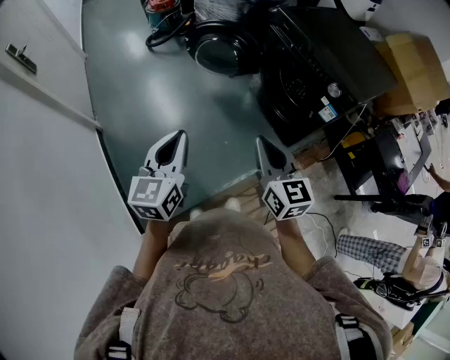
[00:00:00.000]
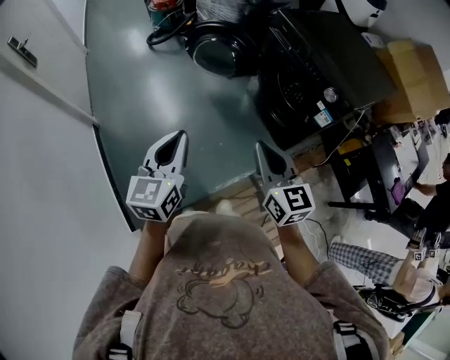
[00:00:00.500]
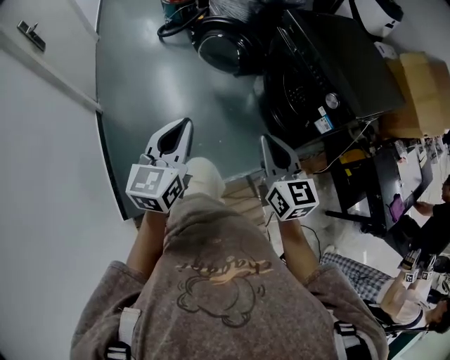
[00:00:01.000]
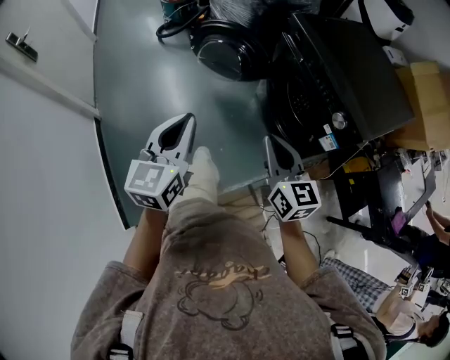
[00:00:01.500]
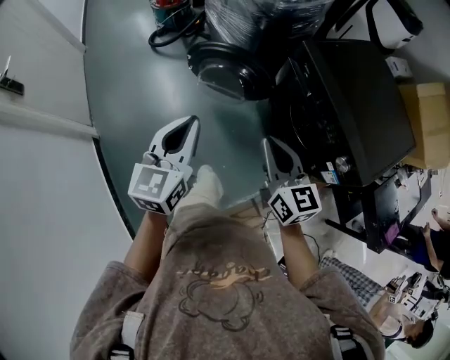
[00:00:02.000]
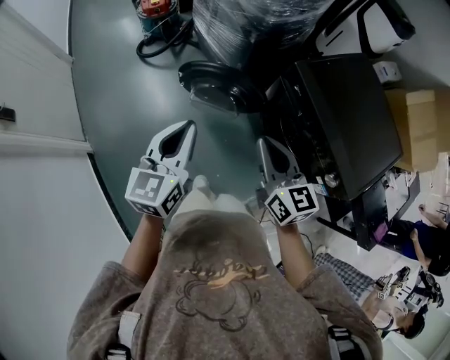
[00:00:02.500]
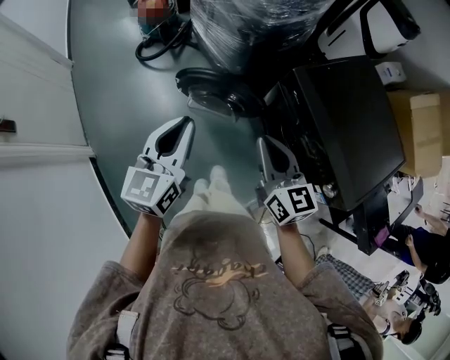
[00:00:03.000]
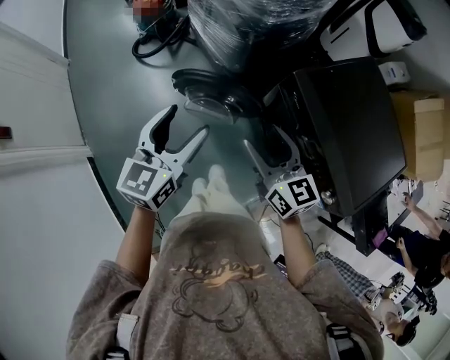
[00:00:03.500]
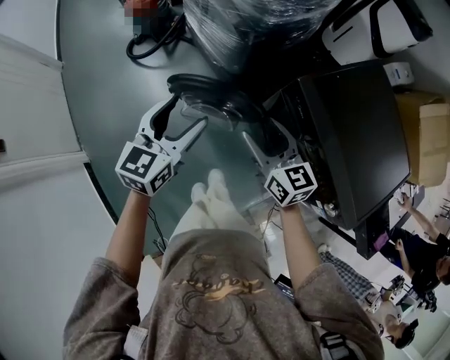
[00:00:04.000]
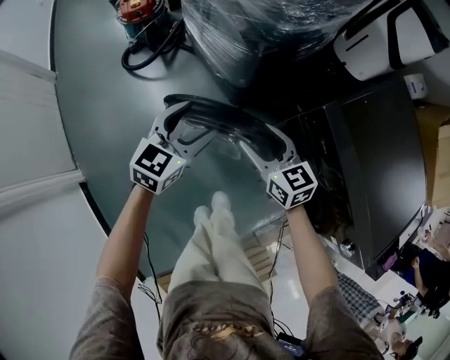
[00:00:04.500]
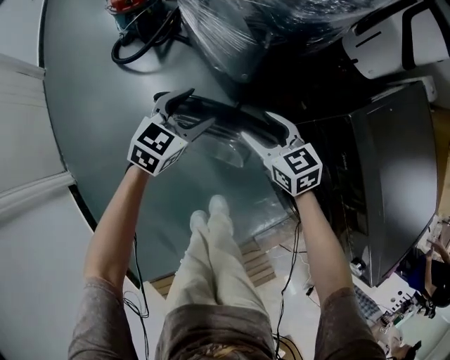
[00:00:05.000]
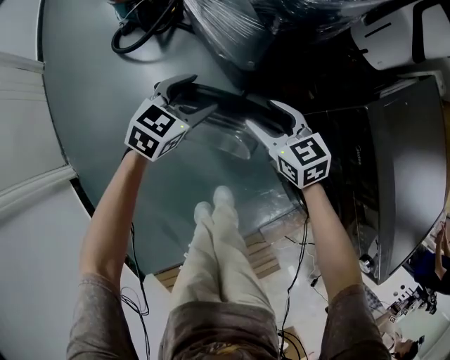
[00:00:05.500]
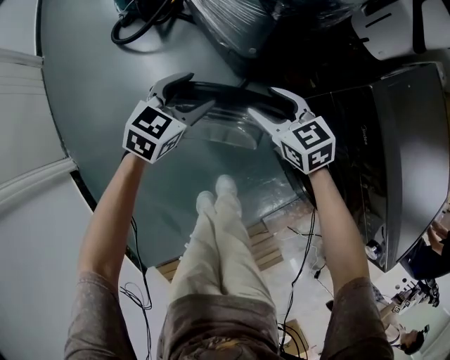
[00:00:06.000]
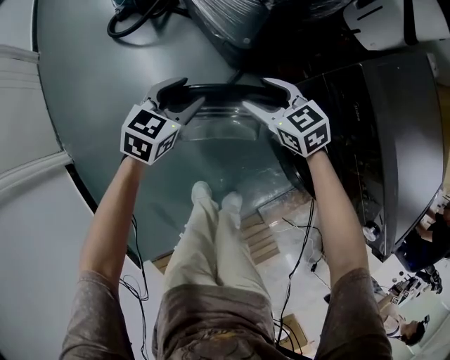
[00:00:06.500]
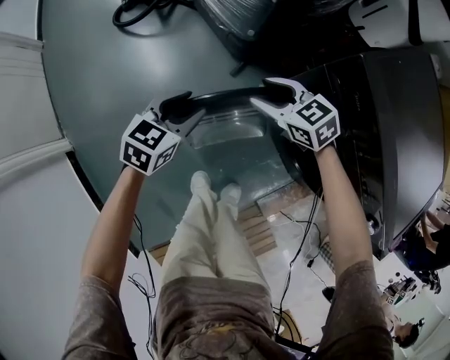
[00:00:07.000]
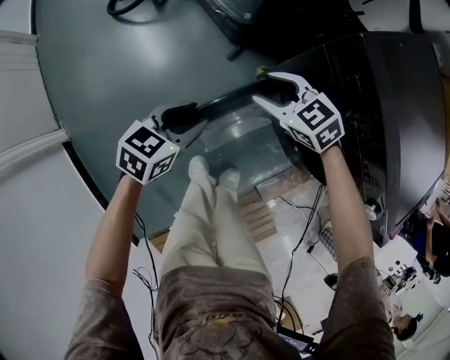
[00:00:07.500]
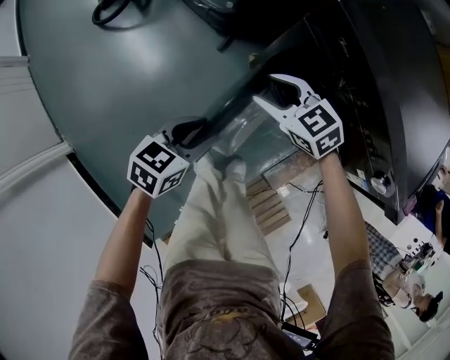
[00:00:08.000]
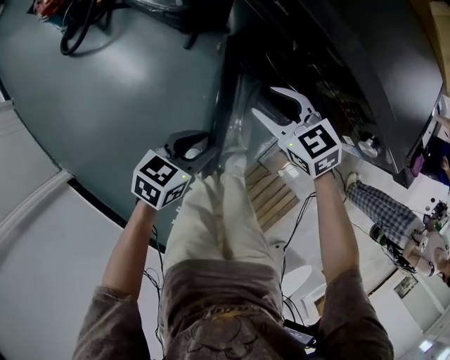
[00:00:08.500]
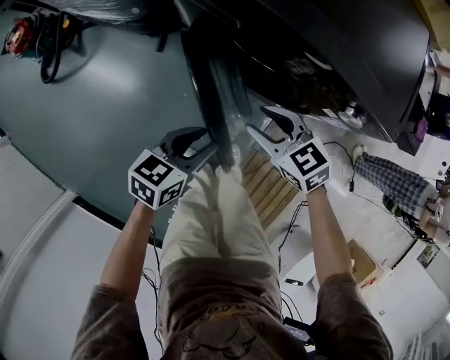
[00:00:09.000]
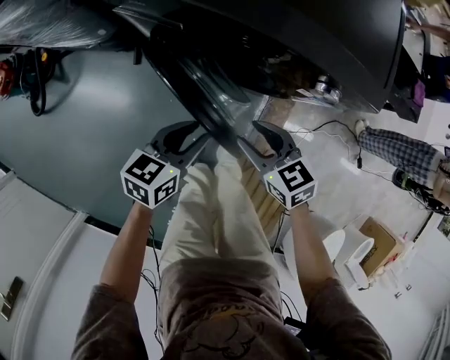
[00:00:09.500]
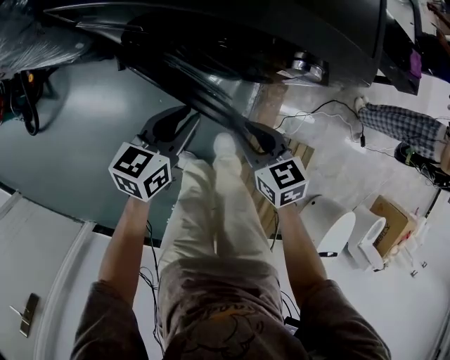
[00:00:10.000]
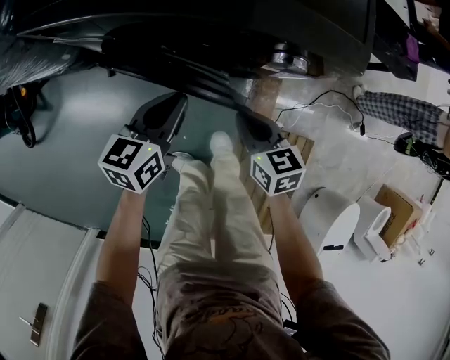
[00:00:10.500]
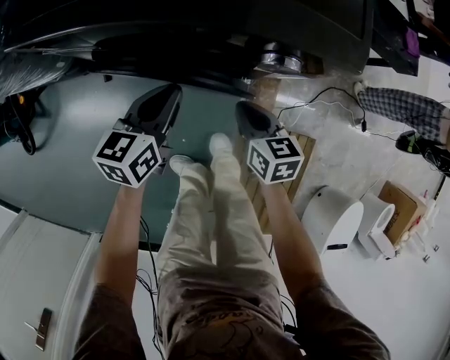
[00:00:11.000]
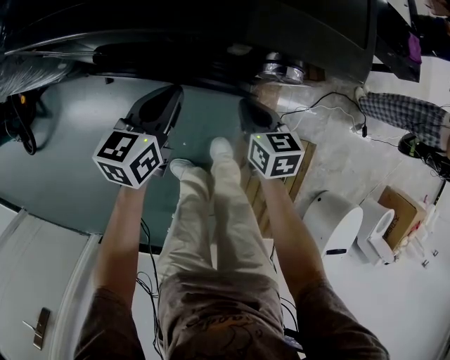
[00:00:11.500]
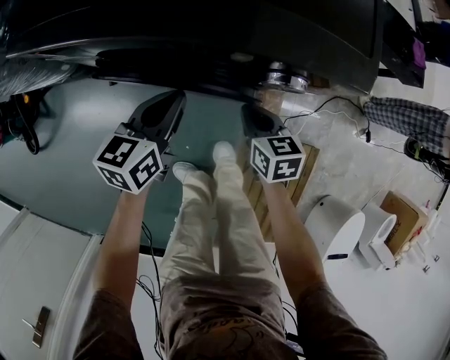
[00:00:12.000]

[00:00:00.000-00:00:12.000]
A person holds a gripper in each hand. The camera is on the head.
00:00:00.000 to 00:00:02.000: The two grippers go some 25 cm forward.
00:00:02.000 to 00:00:04.000: The grippers both shift forward by roughly 25 cm. The right gripper opens up. The left gripper opens up.
00:00:04.000 to 00:00:06.000: The grippers both shift downward and forward by roughly 30 cm. The left gripper changes its angle by roughly 20 degrees. Meanwhile the right gripper turns by about 30 degrees.
00:00:06.000 to 00:00:08.000: The right gripper shifts some 15 cm backward. Meanwhile the left gripper travels backward by some 25 cm, rotates approximately 20 degrees, and closes up.
00:00:08.000 to 00:00:10.000: The left gripper changes place by some 25 cm, and turns by about 20 degrees; the right gripper ends up some 35 cm from where it was, turns by roughly 60 degrees, and closes its fingers.
00:00:10.000 to 00:00:12.000: The left gripper is displaced forward by some 10 cm; the right gripper goes approximately 10 cm forward, downward and to the right, and closes up.

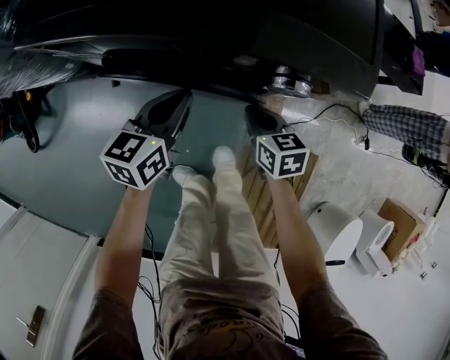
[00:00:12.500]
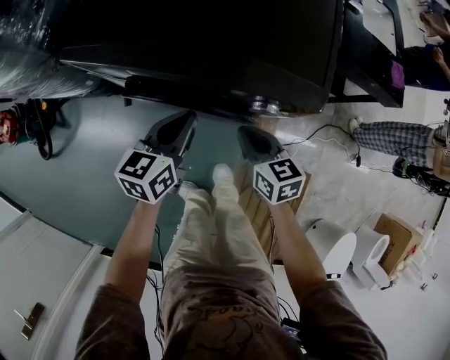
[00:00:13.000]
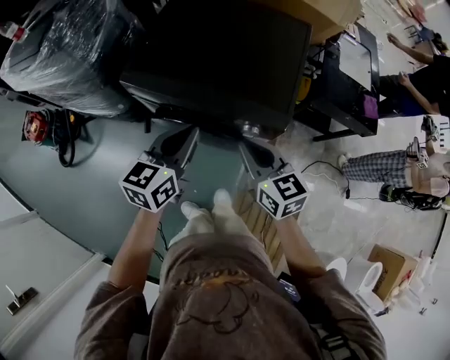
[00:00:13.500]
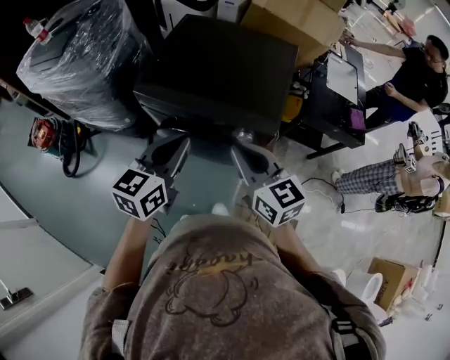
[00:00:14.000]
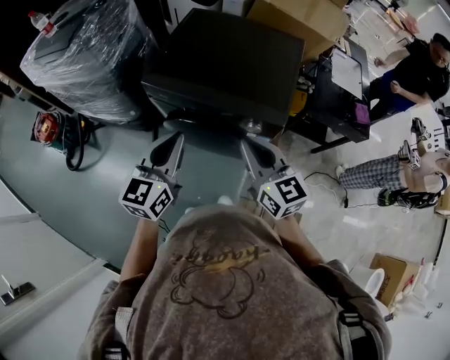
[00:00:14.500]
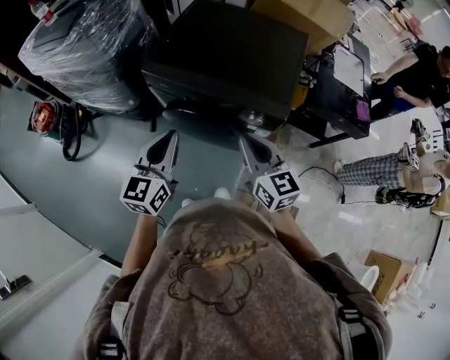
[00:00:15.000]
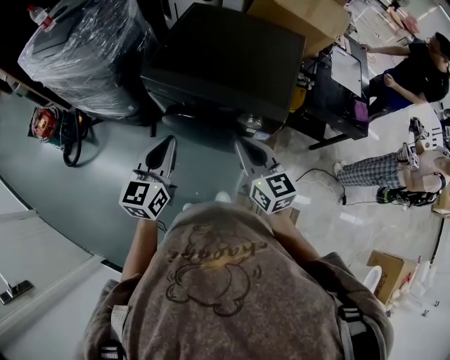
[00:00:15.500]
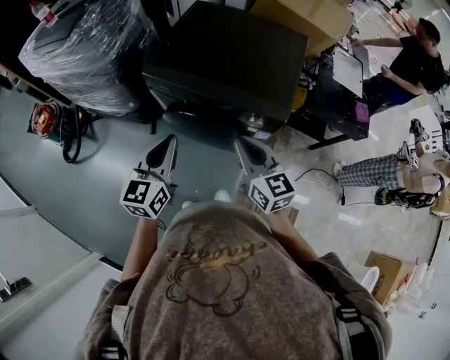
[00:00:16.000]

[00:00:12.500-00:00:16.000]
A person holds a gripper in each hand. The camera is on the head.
00:00:12.500 to 00:00:14.500: Both grippers travel together upward, about 40 cm. The right gripper angles its fingers upward, by some 40 degrees; the left gripper swivels approximately 30 degrees.
00:00:14.500 to 00:00:16.000: The left gripper ends up roughly 5 cm from where it was.

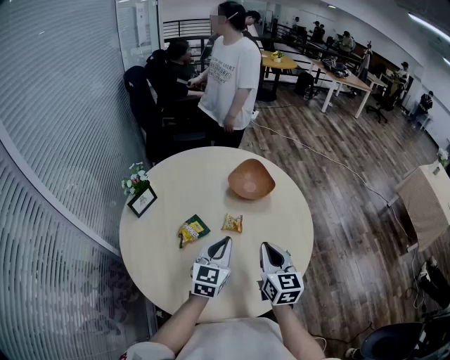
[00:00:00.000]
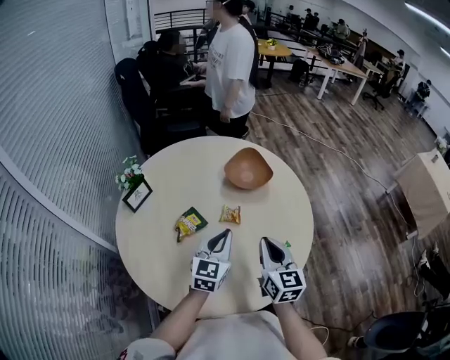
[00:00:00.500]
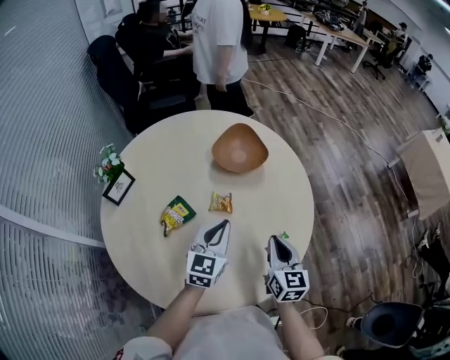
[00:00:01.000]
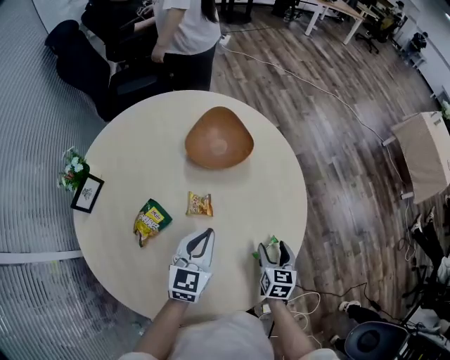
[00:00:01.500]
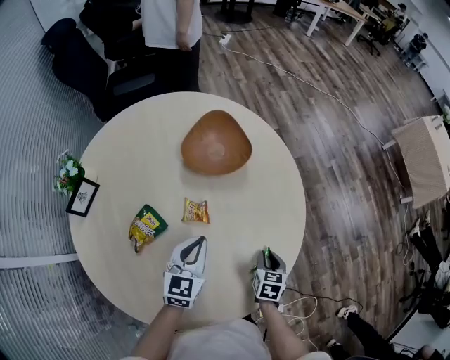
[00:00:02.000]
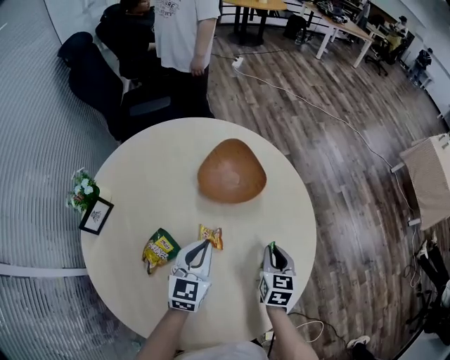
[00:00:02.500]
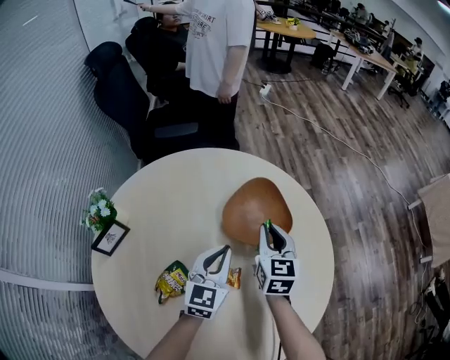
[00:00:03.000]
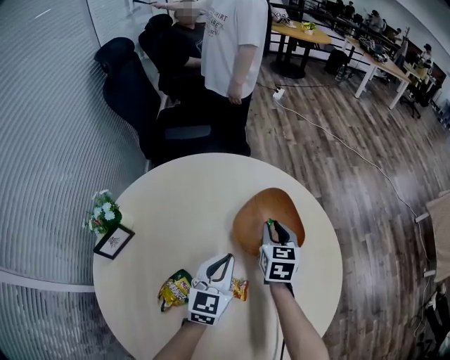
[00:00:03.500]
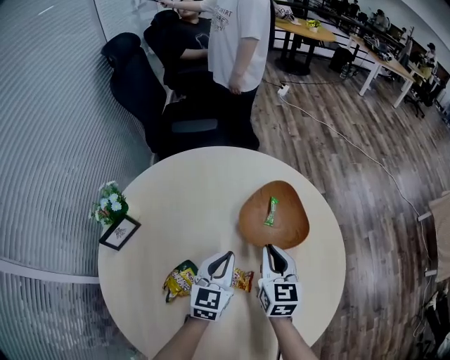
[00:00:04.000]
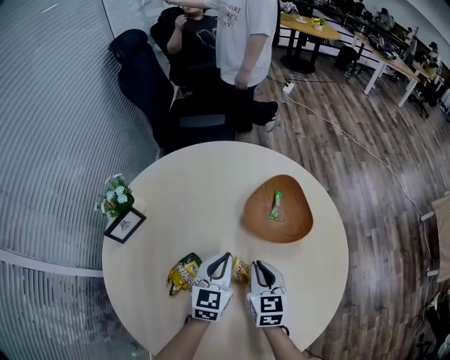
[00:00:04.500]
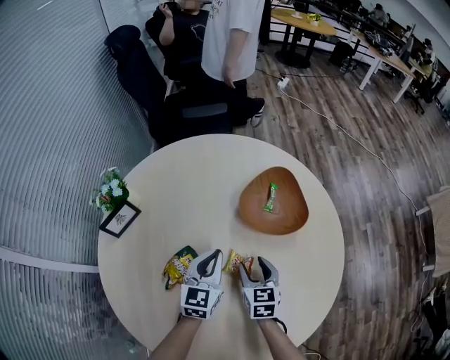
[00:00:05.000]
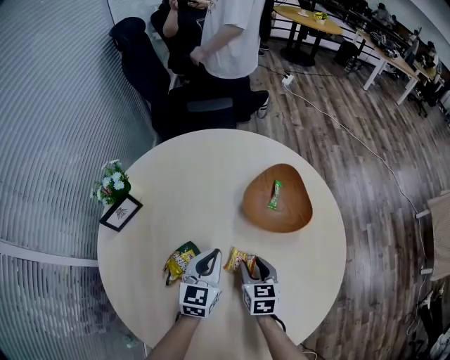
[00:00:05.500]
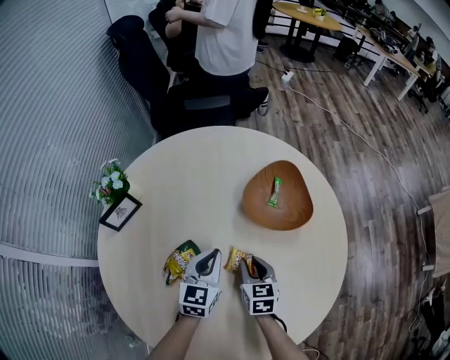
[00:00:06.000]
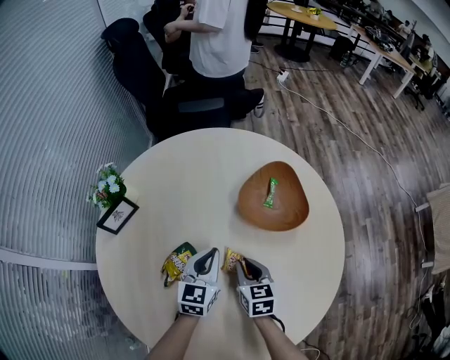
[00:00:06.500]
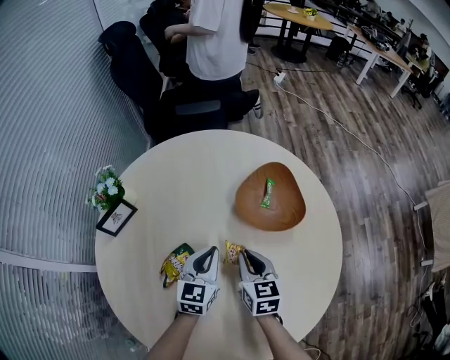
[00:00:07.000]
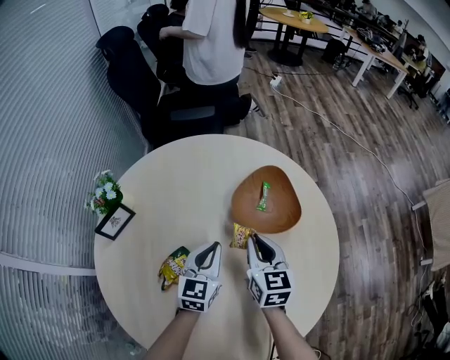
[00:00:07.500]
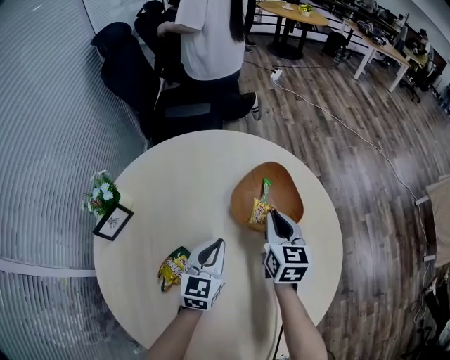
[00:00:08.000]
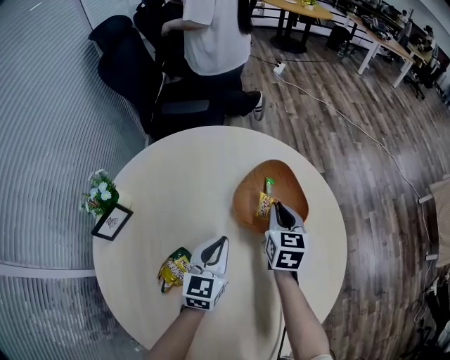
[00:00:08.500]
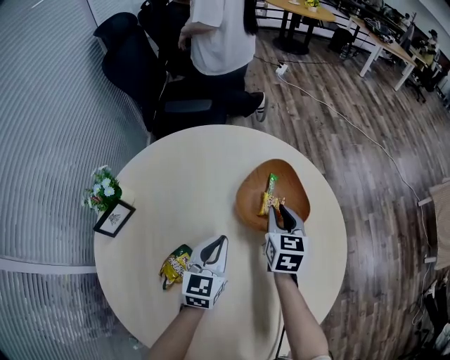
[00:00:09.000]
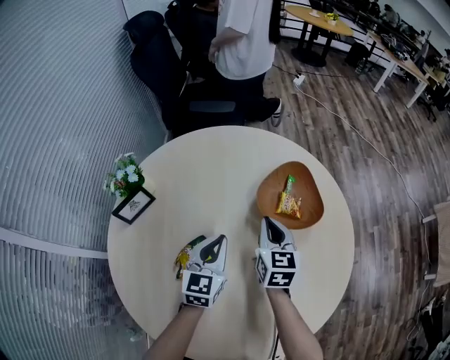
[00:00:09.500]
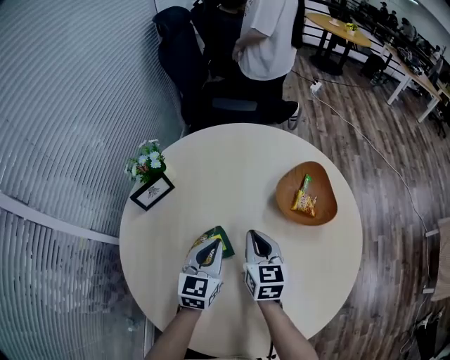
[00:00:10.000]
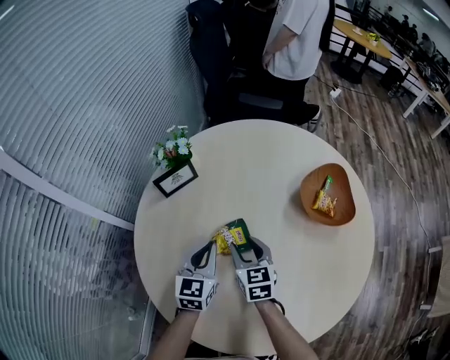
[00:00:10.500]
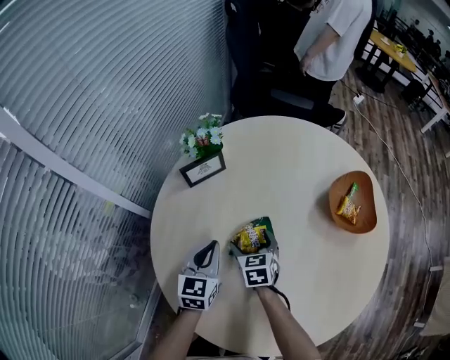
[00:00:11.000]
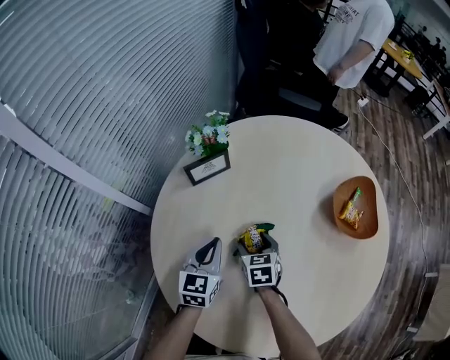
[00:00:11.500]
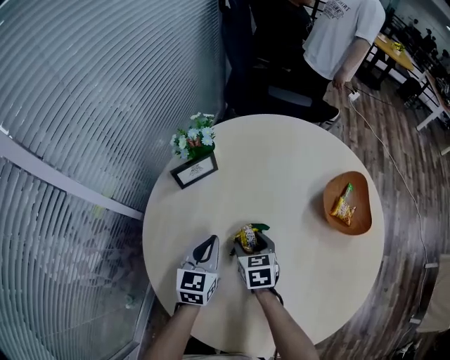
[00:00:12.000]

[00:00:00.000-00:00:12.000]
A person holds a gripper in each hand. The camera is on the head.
00:00:00.000 to 00:00:02.000: The right gripper moves downward and to the right, roughly 30 cm, angles its fingers downward, by about 40 degrees, and opens, then closes once more; the left gripper moves downward and forward, about 15 cm.
00:00:02.000 to 00:00:04.000: The right gripper heads forward, to the left and upward, covering about 35 cm, and swivels about 40 degrees; the left gripper is displaced forward and to the left by roughly 20 cm.
00:00:04.000 to 00:00:06.000: The left gripper travels backward by about 5 cm, while the right gripper moves downward, backward and to the left, approximately 15 cm.
00:00:06.000 to 00:00:08.000: The right gripper moves forward, upward and to the right, about 20 cm. Meanwhile the left gripper shifts by some 5 cm.
00:00:08.000 to 00:00:10.000: The two grippers go some 20 cm to the left and backward.
00:00:10.000 to 00:00:12.000: The right gripper shifts some 20 cm to the left and downward, turns by approximately 30 degrees, and opens up. The left gripper shifts roughly 15 cm to the left.
